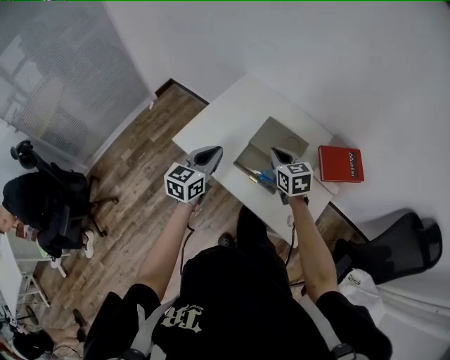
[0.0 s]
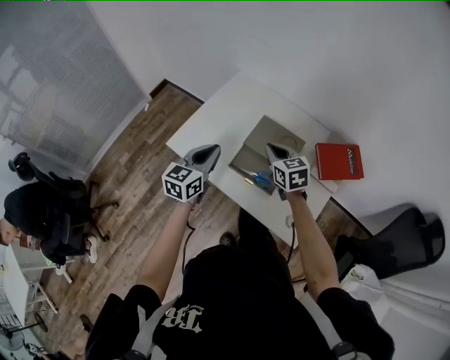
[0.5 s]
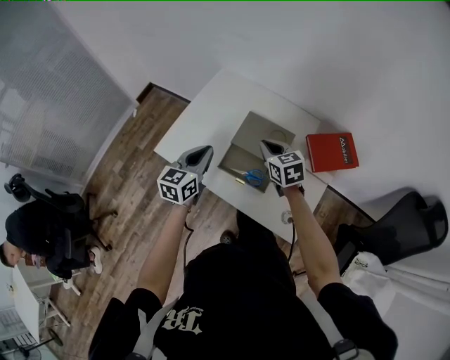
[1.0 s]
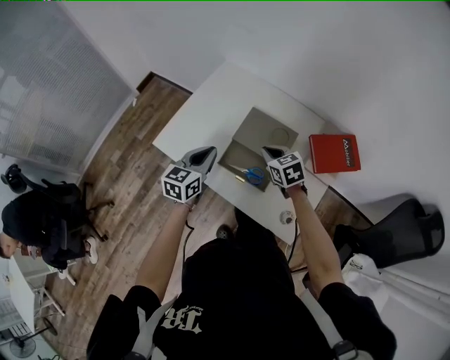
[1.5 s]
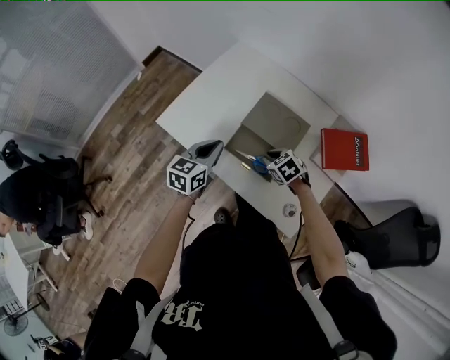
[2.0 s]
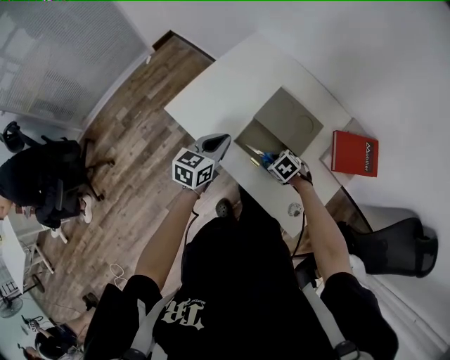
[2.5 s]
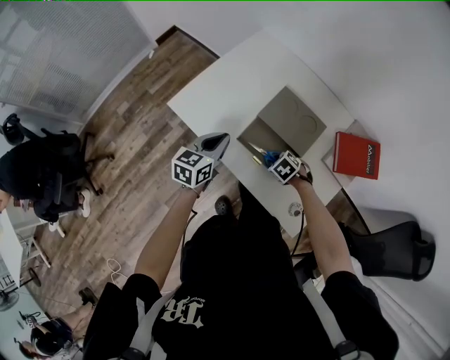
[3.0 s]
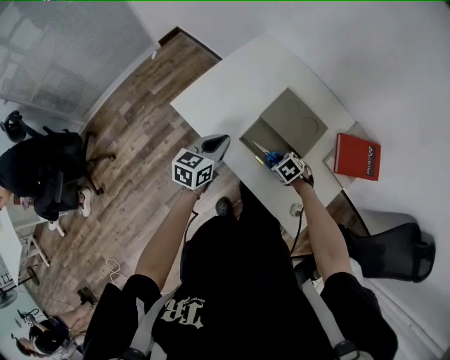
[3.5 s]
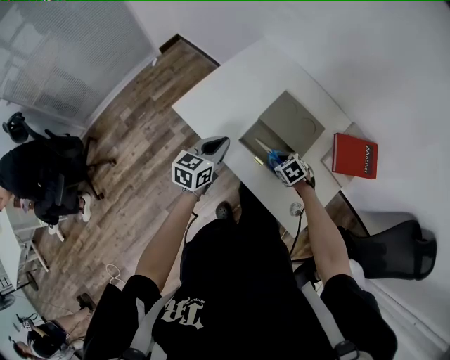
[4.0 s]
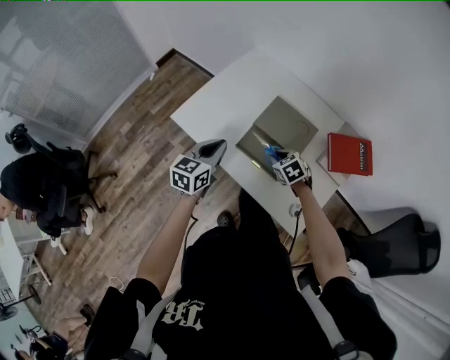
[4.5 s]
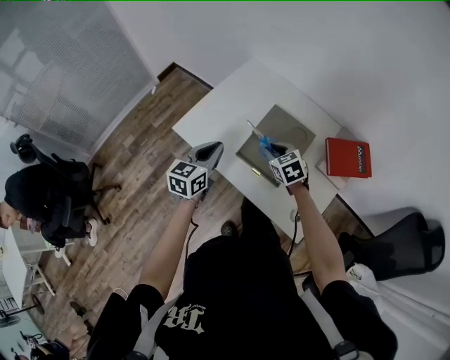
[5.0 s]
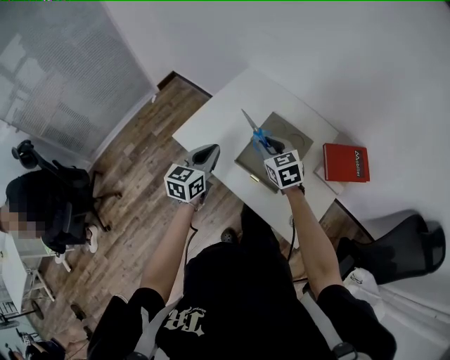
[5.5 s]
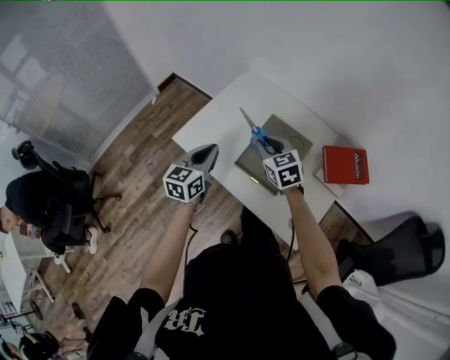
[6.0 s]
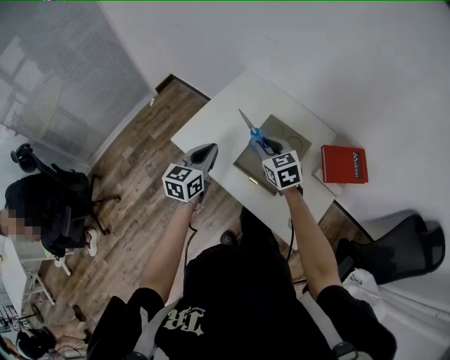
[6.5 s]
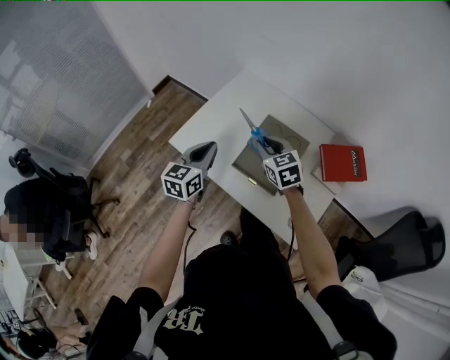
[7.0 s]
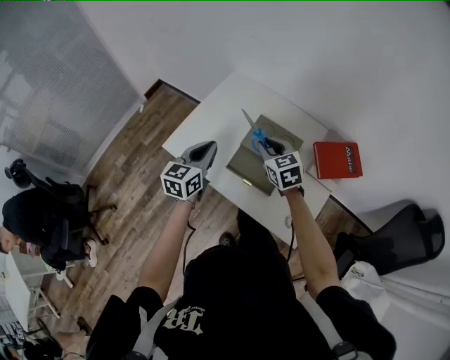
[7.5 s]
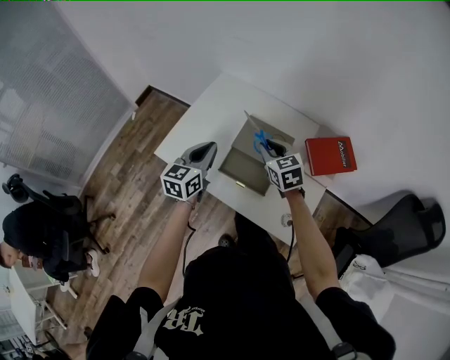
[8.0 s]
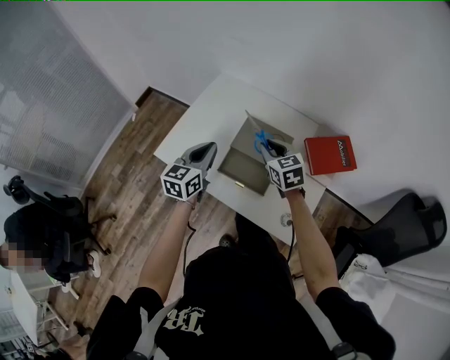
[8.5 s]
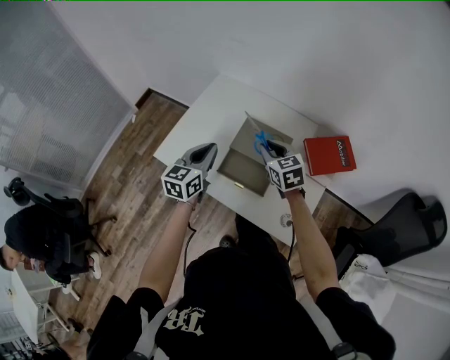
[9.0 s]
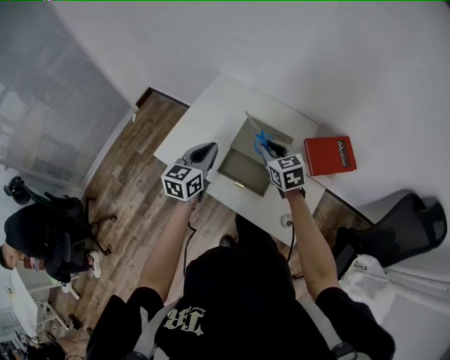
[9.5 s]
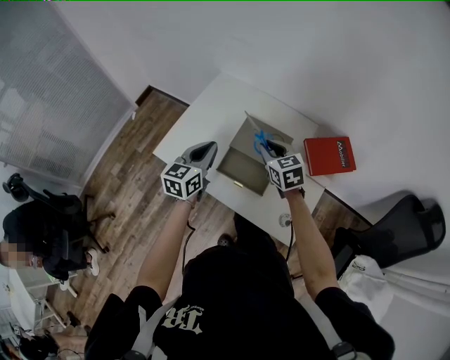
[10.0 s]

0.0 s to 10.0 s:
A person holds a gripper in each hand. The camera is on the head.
0.0 to 2.0 s: The left gripper travels downward by about 10 cm. The right gripper goes about 20 cm downward, and tips its fingers downward by approximately 30 degrees.
4.0 to 6.0 s: The left gripper moves upward, roughly 10 cm. The right gripper is displaced upward by about 25 cm, and angles its fingers upward, by roughly 40 degrees.
6.0 to 8.0 s: The grippers both shift to the right by about 5 cm.
8.0 to 10.0 s: The grippers make only small movements.

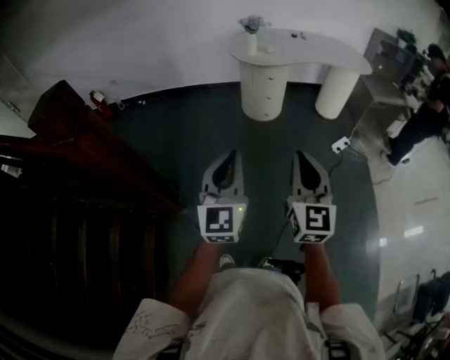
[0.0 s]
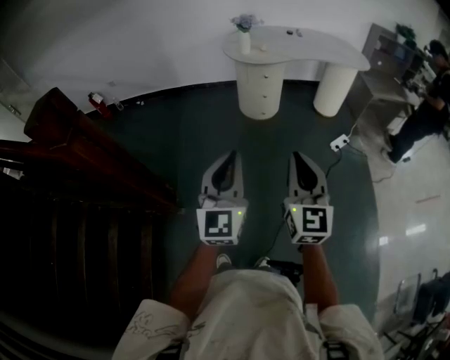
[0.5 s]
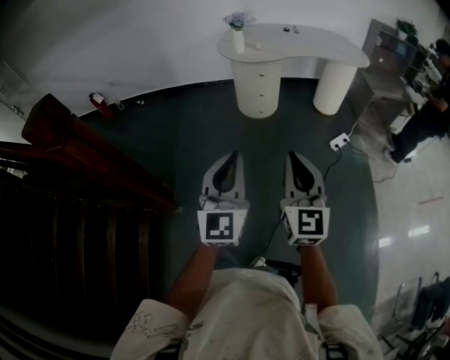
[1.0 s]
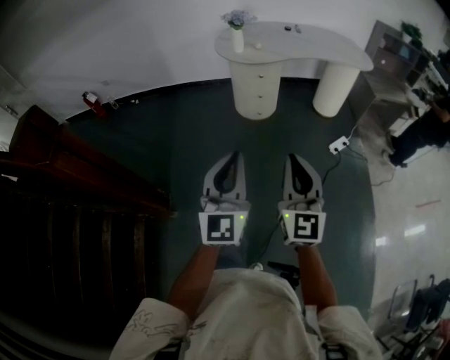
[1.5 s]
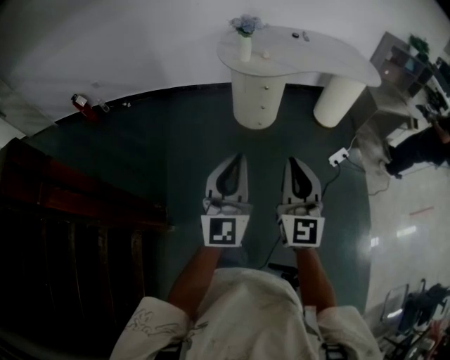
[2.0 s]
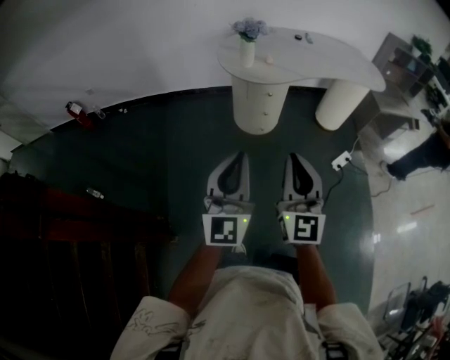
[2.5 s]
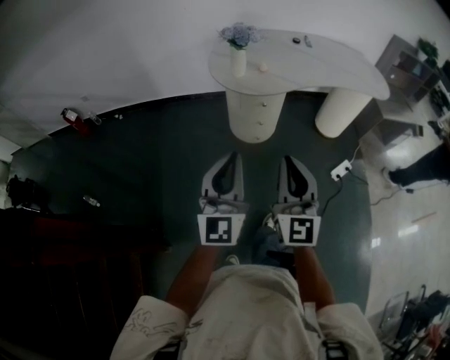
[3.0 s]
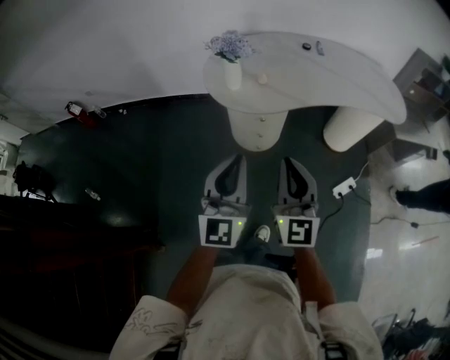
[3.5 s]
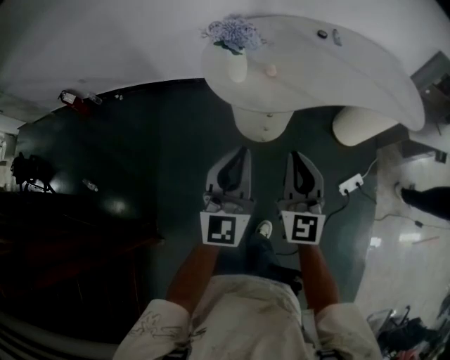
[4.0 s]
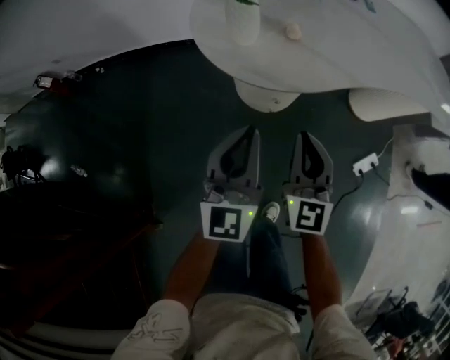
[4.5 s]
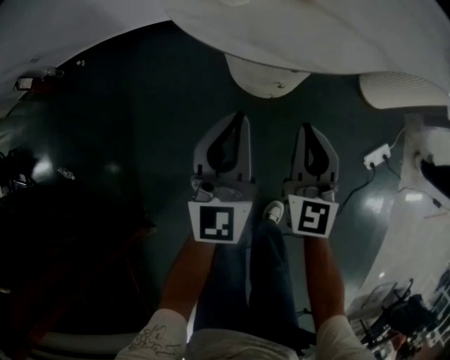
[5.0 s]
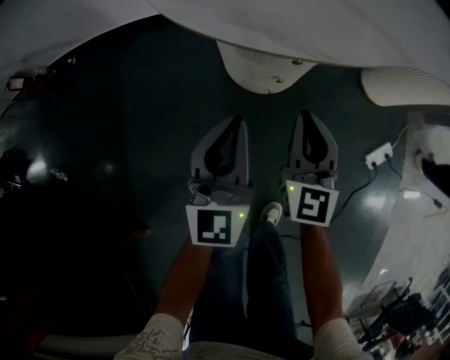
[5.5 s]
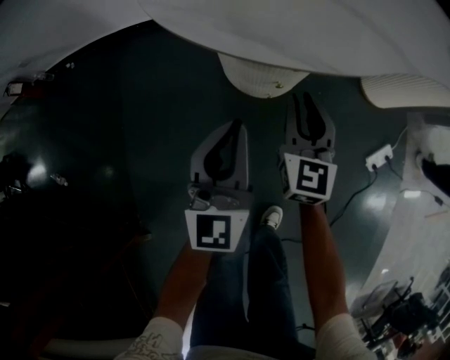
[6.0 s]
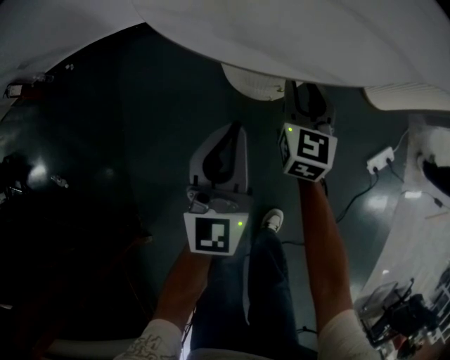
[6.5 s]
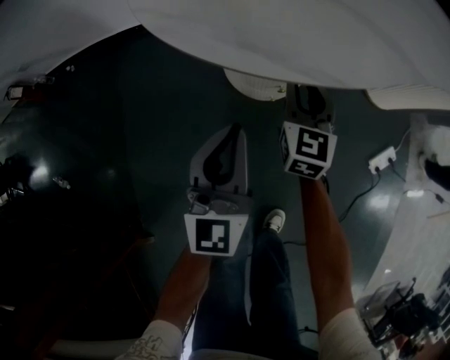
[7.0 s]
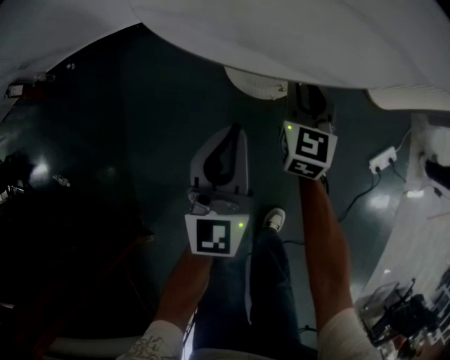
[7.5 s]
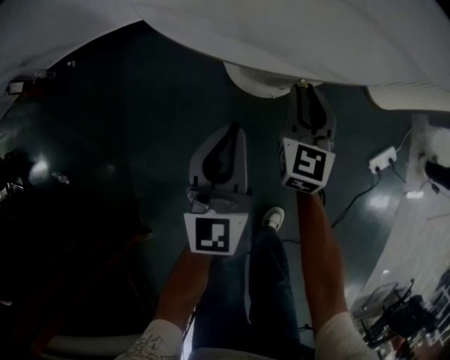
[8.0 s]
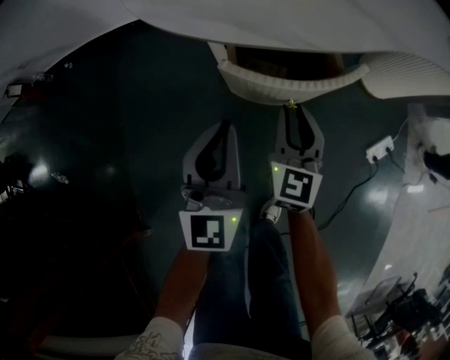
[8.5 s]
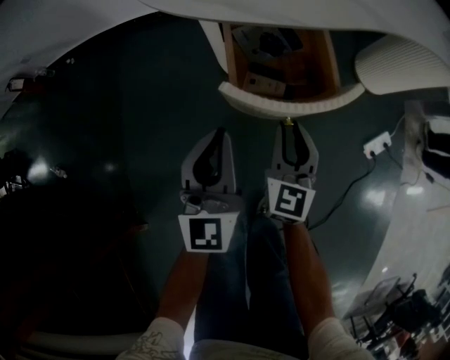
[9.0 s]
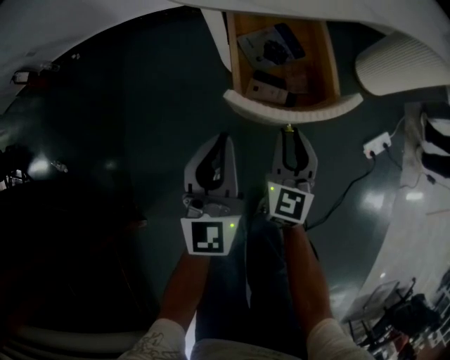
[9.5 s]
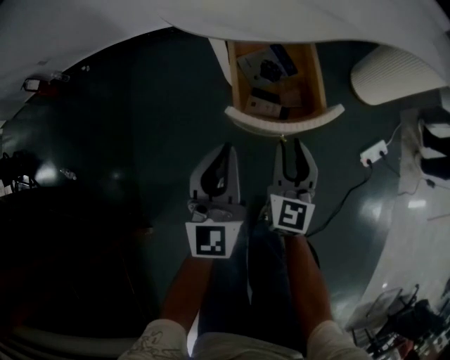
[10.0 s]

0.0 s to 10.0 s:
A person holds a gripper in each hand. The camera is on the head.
0.0 to 2.0 s: Both grippers travel together forward, approximately 20 cm.
2.0 to 4.0 s: The two grippers travel together, forward, about 40 cm.
4.0 to 6.0 s: Both grippers travel together downward and forward, some 40 cm.
8.0 to 10.0 s: The left gripper heads backward and upward, covering roughly 15 cm. Meanwhile the right gripper heads backward, covering some 20 cm.

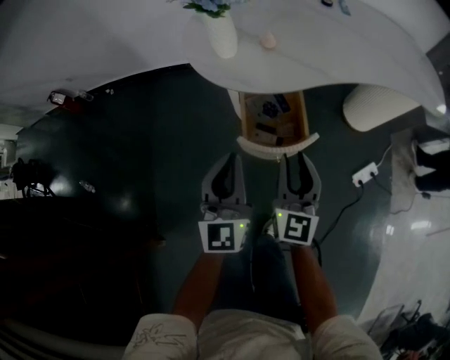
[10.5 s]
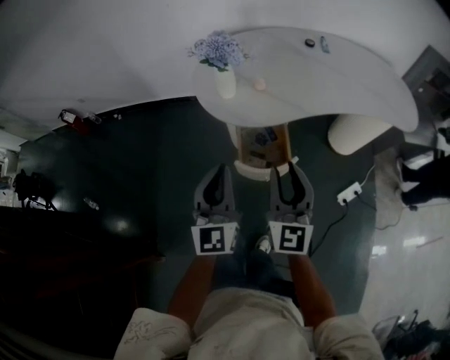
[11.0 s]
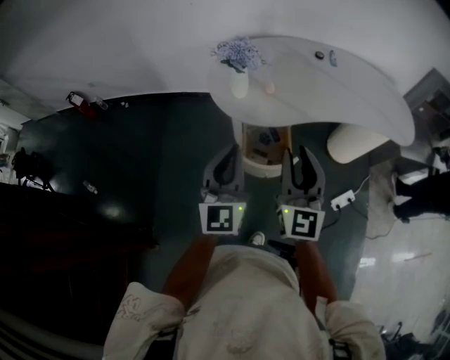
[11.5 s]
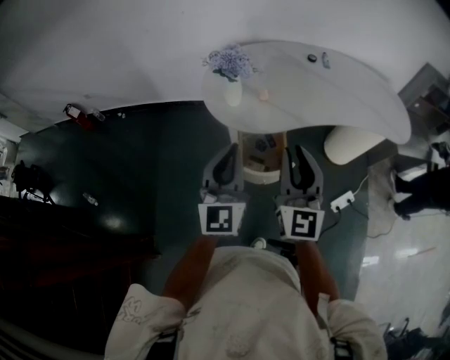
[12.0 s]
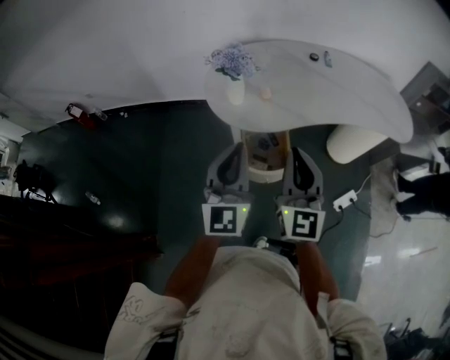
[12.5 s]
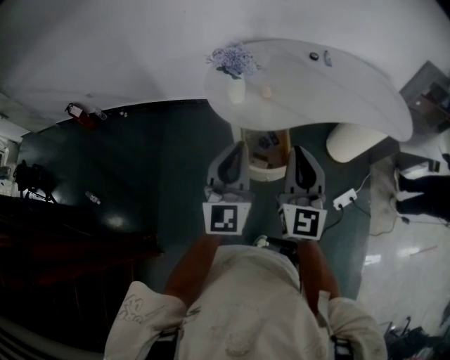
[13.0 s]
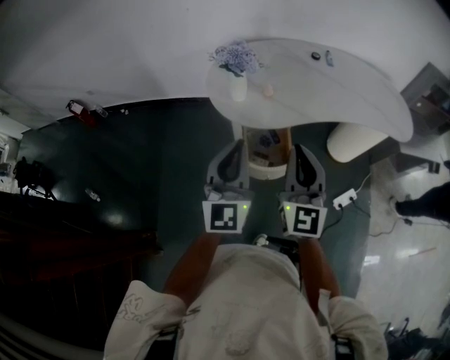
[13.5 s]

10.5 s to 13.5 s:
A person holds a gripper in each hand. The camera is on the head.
10.5 to 12.0 s: Both grippers move upward, roughly 20 cm.
12.0 to 13.5 s: The right gripper closes its fingers.

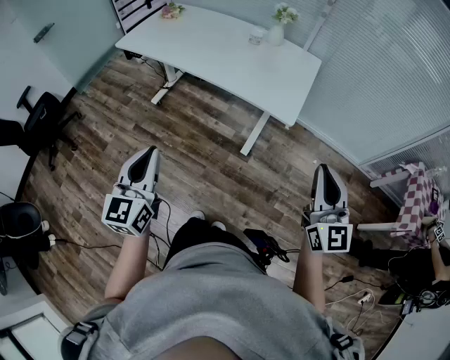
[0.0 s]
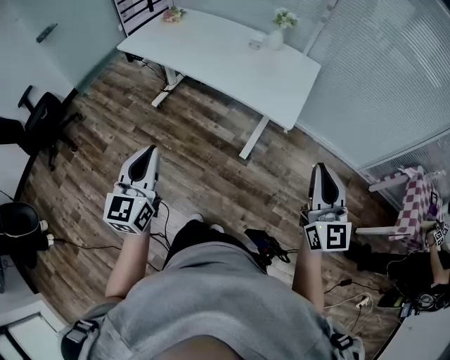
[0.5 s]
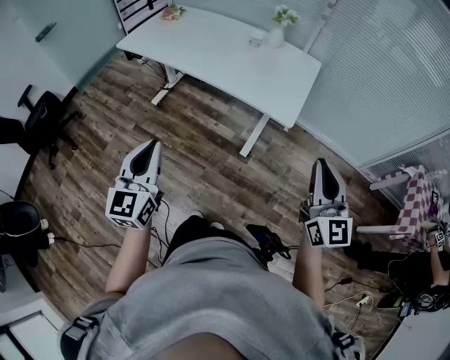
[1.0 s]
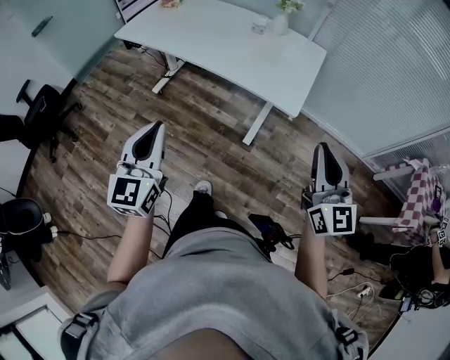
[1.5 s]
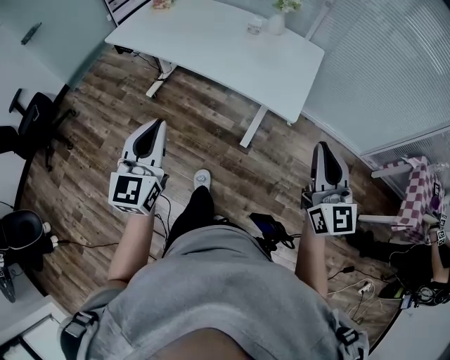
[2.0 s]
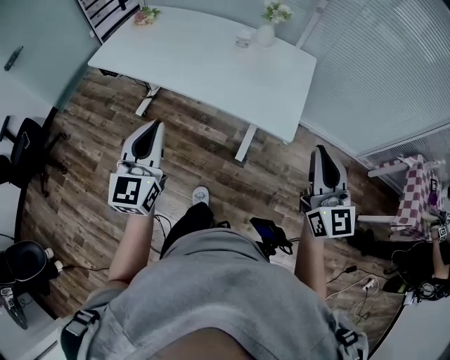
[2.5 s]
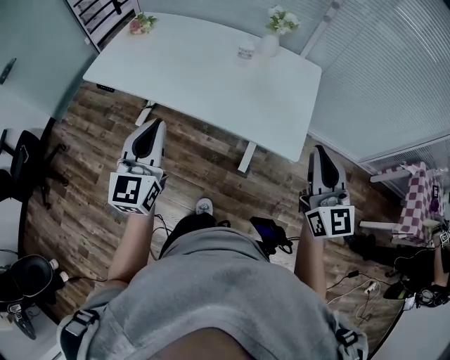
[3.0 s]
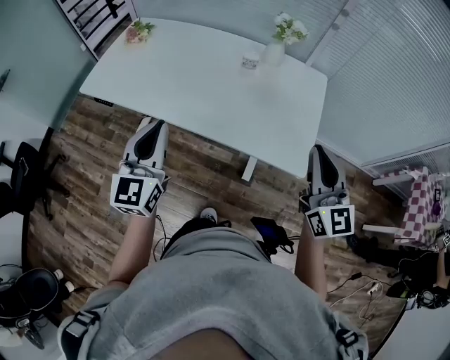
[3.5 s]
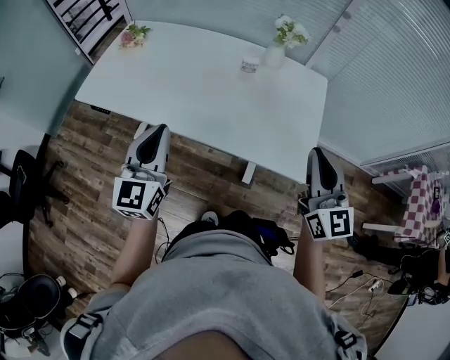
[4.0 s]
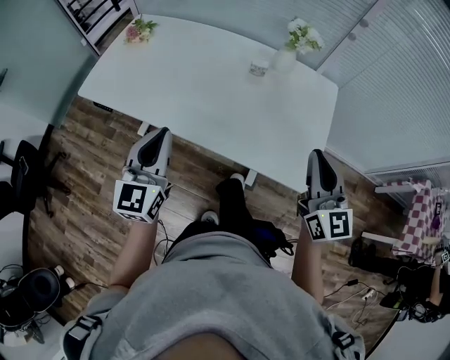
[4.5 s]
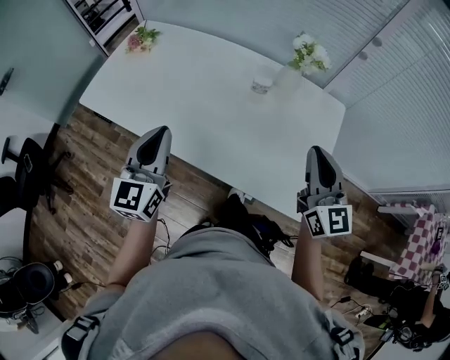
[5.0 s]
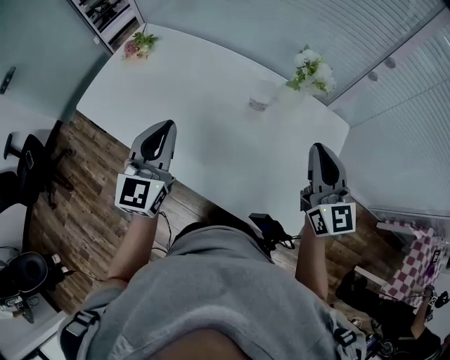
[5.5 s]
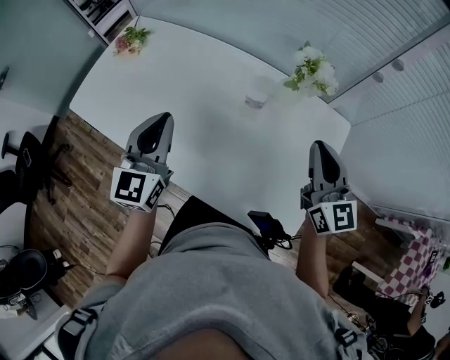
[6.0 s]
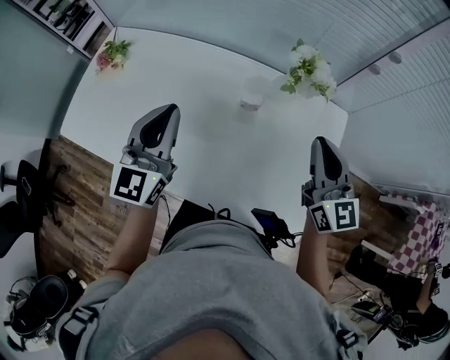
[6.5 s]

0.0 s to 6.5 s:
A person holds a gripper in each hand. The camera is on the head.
0.0 to 2.0 s: The grippers both shift forward by some 10 cm.
2.0 to 4.5 s: Both grippers move forward, roughly 35 cm.
4.5 to 6.5 s: Both grippers travel together forward, about 25 cm.
